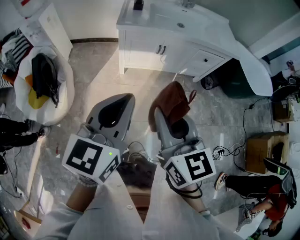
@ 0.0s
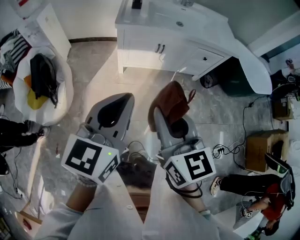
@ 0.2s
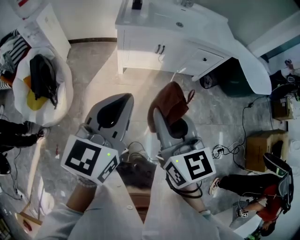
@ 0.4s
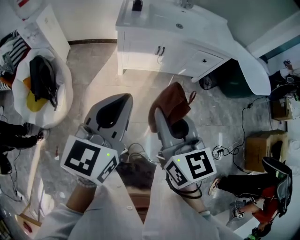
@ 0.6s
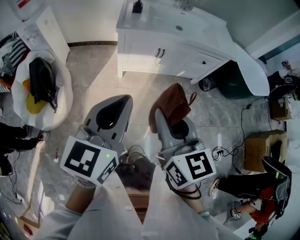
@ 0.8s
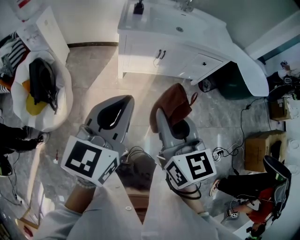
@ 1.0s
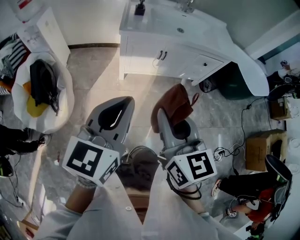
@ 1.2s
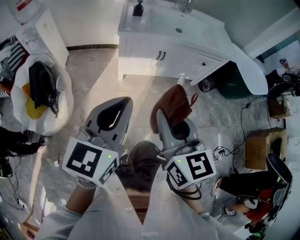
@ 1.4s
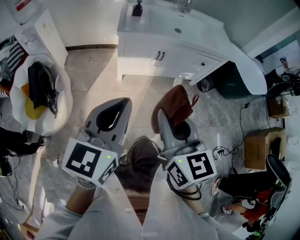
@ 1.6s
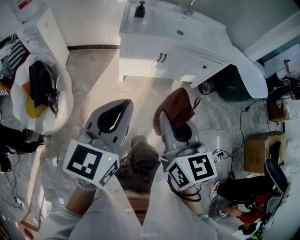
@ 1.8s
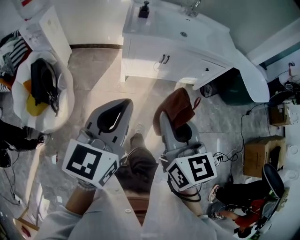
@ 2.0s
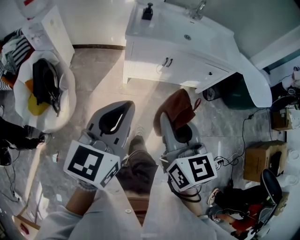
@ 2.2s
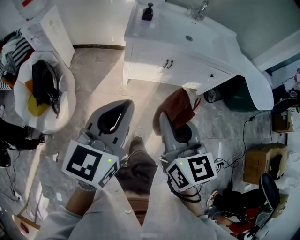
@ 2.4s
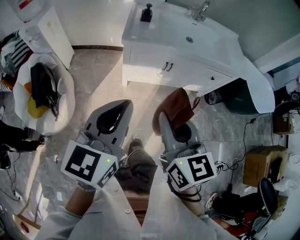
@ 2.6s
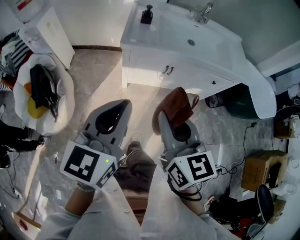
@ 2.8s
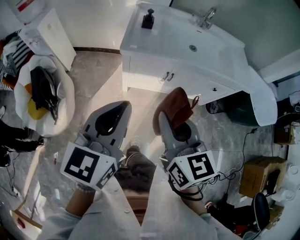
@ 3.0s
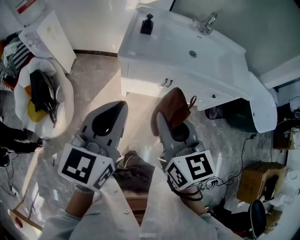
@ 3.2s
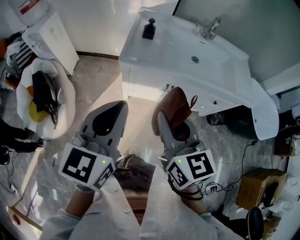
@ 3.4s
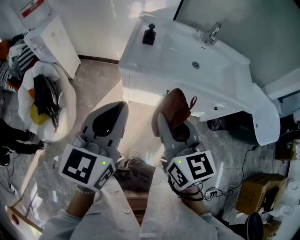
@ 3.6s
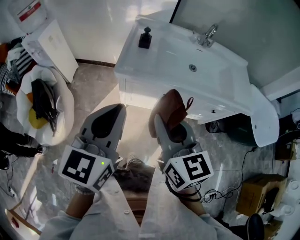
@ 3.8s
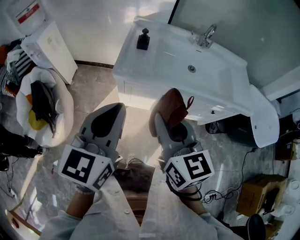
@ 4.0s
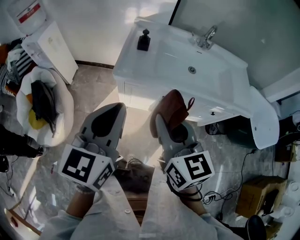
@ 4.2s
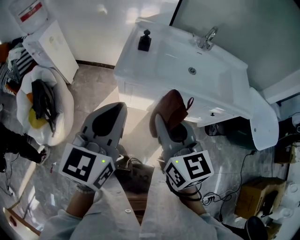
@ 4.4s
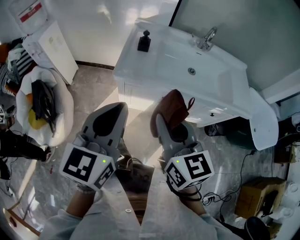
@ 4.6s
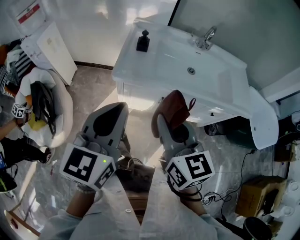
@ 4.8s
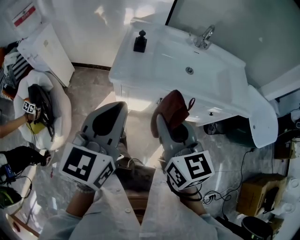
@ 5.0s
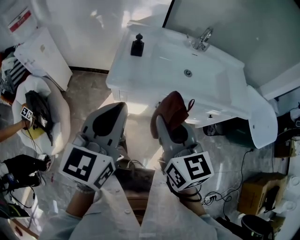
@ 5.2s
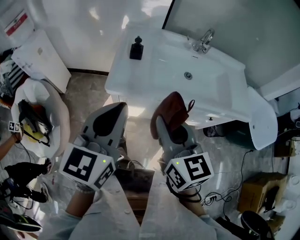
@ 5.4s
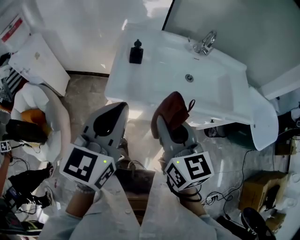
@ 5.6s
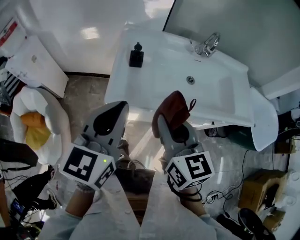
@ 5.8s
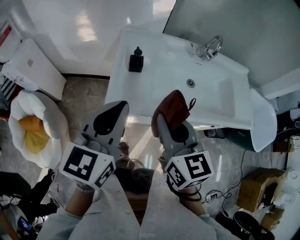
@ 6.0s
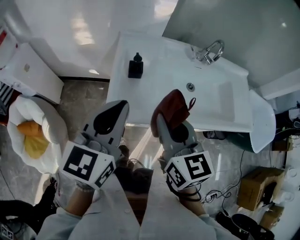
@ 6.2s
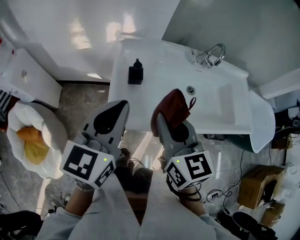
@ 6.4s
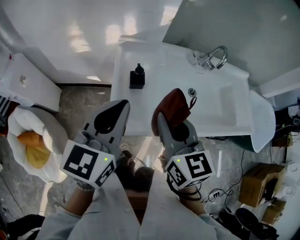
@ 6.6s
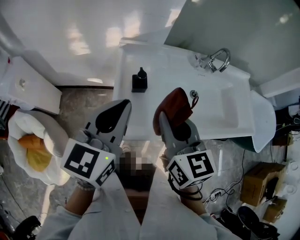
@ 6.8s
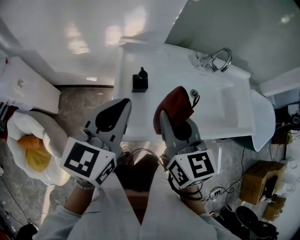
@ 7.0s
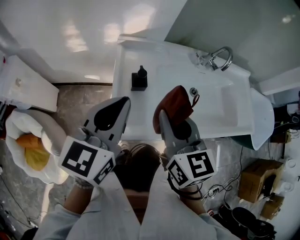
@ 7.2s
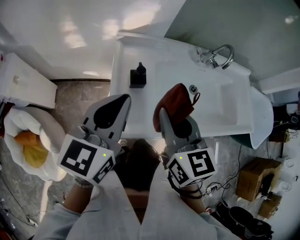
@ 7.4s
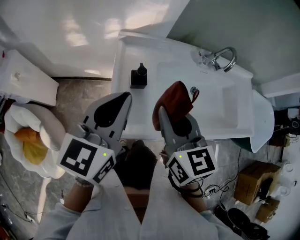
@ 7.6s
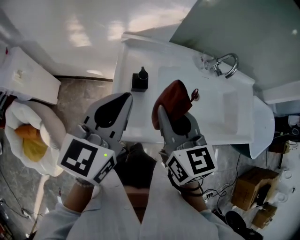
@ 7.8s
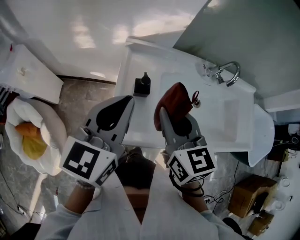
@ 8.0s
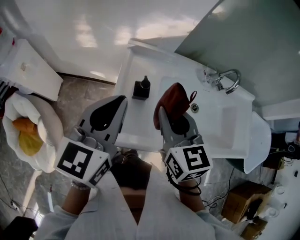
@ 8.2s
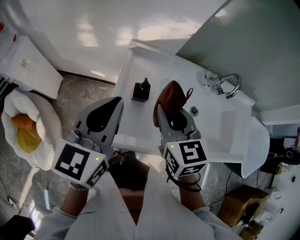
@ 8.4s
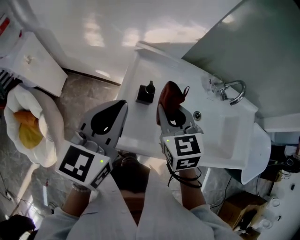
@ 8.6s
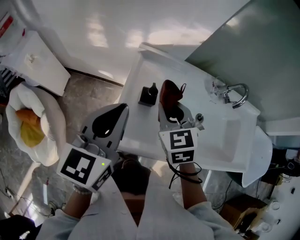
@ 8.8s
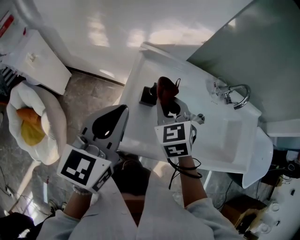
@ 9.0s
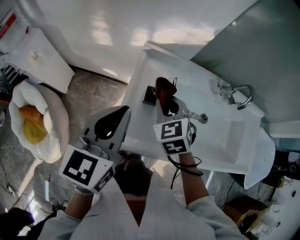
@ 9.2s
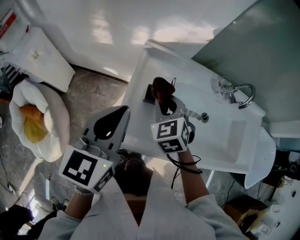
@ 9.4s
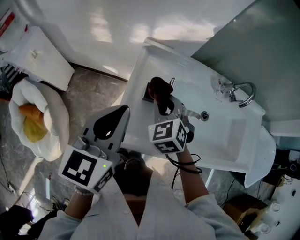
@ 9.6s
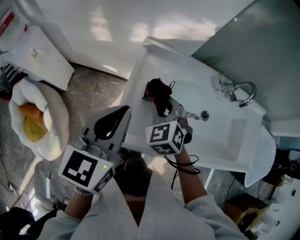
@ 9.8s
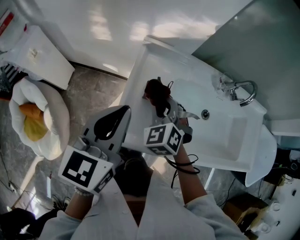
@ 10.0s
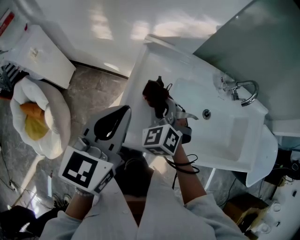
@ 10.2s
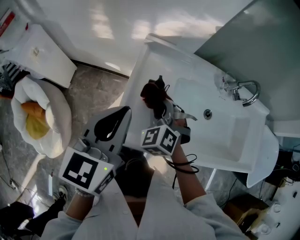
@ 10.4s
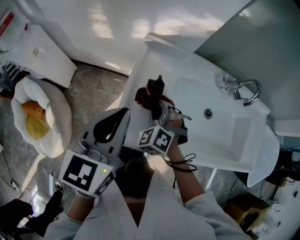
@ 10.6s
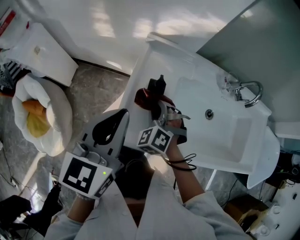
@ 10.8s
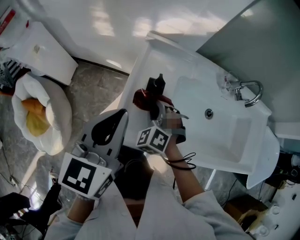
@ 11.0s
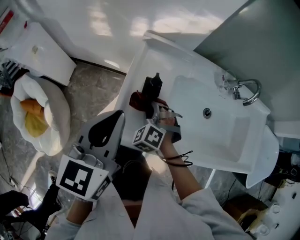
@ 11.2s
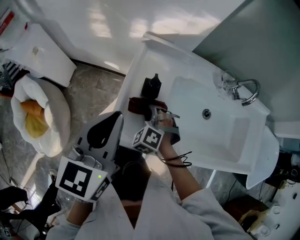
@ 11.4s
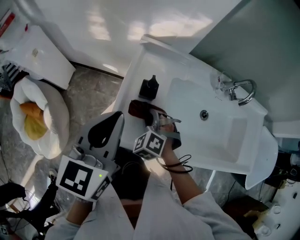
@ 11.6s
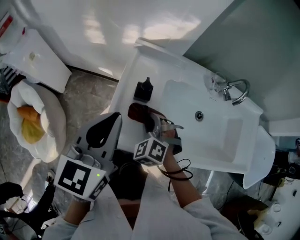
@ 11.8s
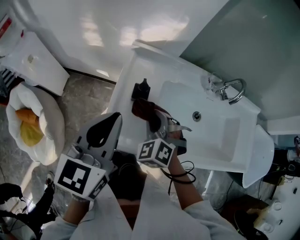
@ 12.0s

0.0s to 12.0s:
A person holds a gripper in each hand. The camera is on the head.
0.0s to 1.6s: The left gripper goes approximately 5 cm to the left. Meanwhile the right gripper ends up about 5 cm from where it was.
1.6s to 3.0s: The two grippers go approximately 20 cm forward.
3.0s to 4.4s: The grippers both shift forward by about 10 cm.
4.4s to 6.0s: Both grippers move forward, some 20 cm.
6.0s to 7.6s: Both grippers move forward, about 15 cm.
7.6s to 9.0s: The right gripper shifts approximately 15 cm forward and downward, and swivels approximately 40 degrees.
9.0s to 10.4s: The right gripper goes about 5 cm downward, and swivels approximately 20 degrees.
10.4s to 12.0s: The right gripper reaches about 10 cm downward, then returns.

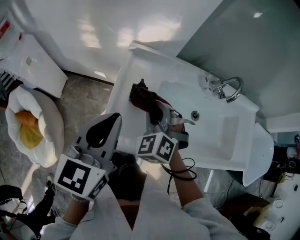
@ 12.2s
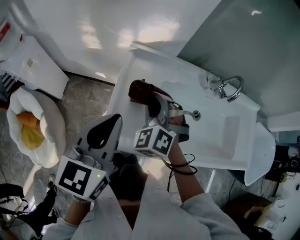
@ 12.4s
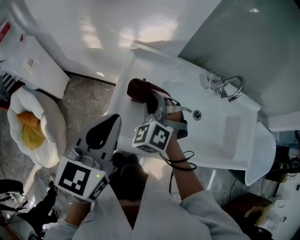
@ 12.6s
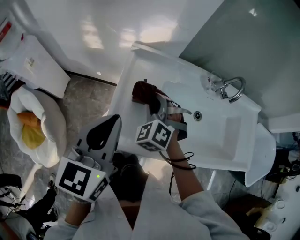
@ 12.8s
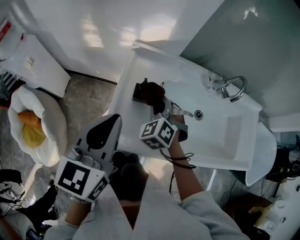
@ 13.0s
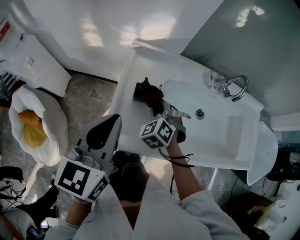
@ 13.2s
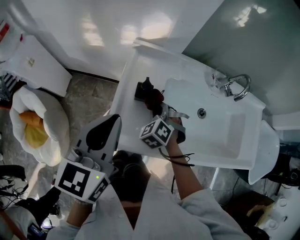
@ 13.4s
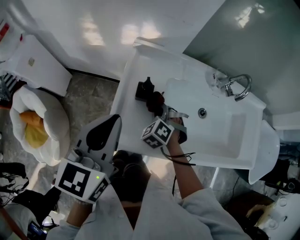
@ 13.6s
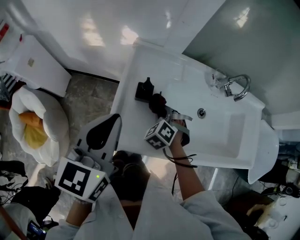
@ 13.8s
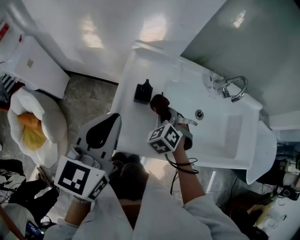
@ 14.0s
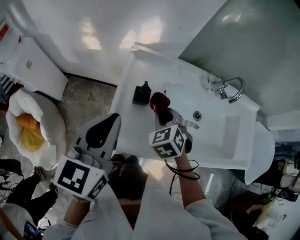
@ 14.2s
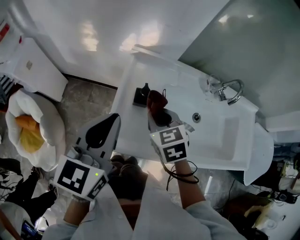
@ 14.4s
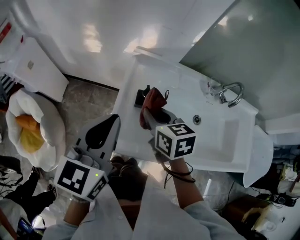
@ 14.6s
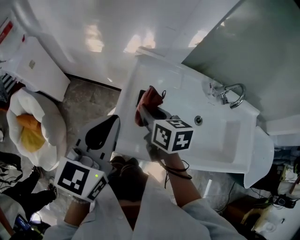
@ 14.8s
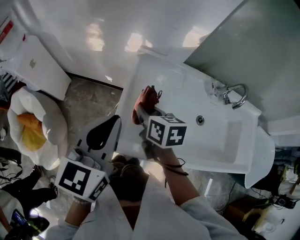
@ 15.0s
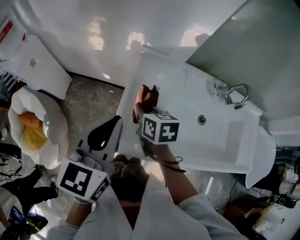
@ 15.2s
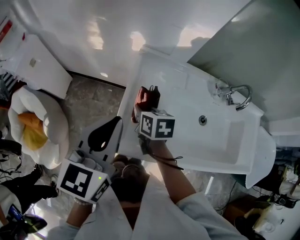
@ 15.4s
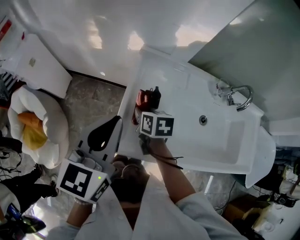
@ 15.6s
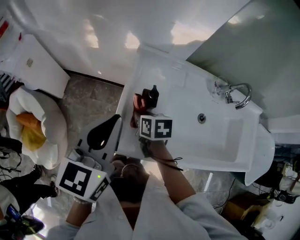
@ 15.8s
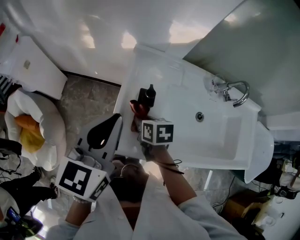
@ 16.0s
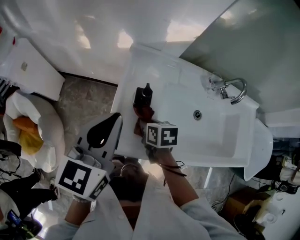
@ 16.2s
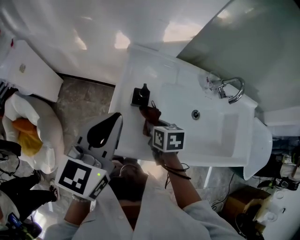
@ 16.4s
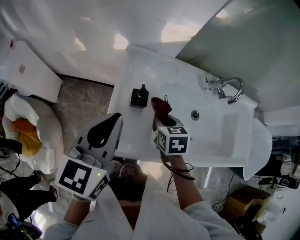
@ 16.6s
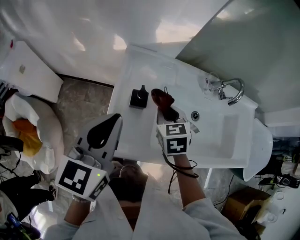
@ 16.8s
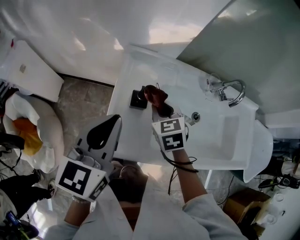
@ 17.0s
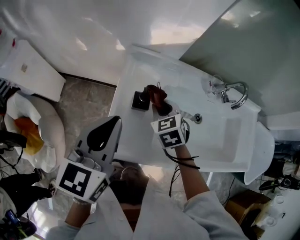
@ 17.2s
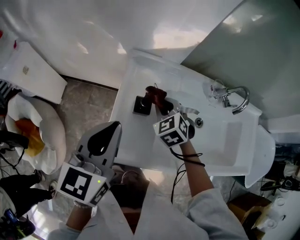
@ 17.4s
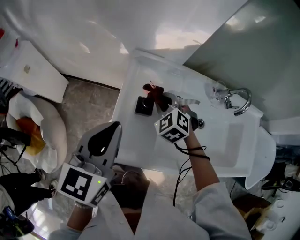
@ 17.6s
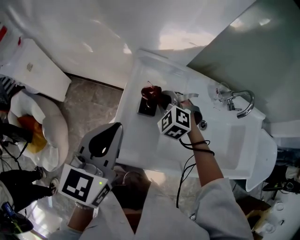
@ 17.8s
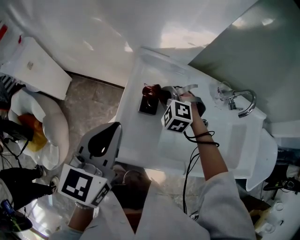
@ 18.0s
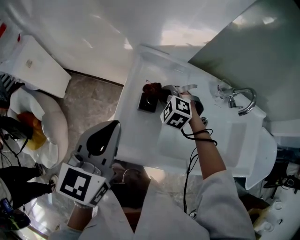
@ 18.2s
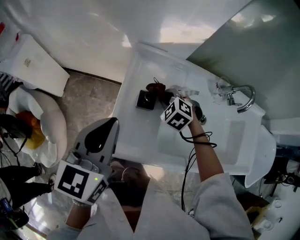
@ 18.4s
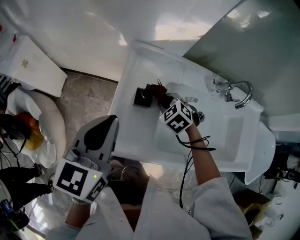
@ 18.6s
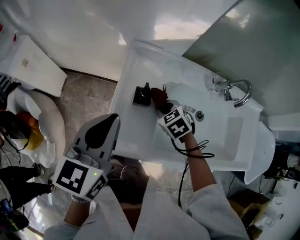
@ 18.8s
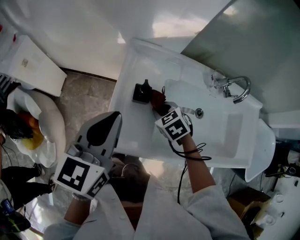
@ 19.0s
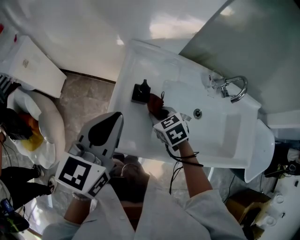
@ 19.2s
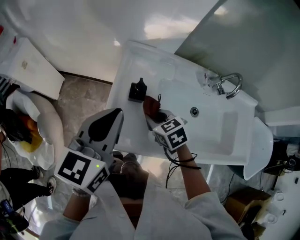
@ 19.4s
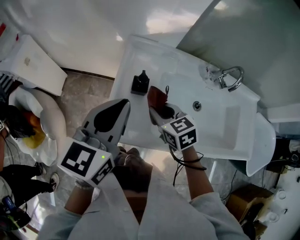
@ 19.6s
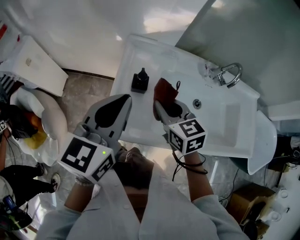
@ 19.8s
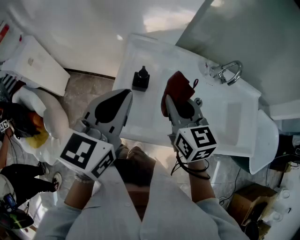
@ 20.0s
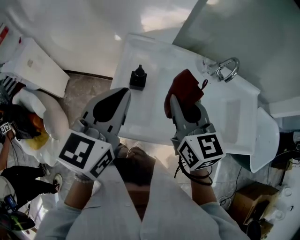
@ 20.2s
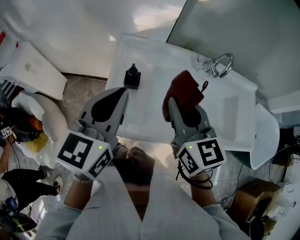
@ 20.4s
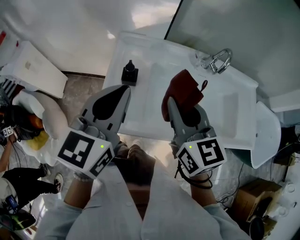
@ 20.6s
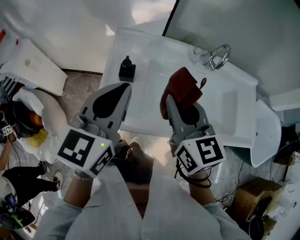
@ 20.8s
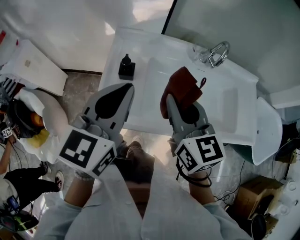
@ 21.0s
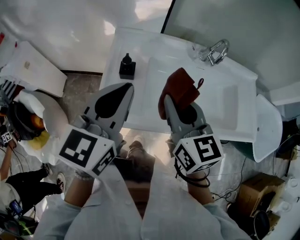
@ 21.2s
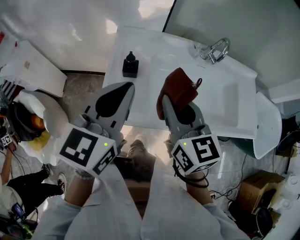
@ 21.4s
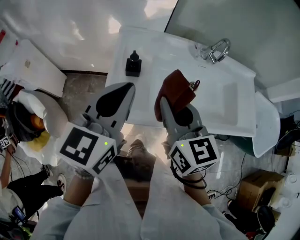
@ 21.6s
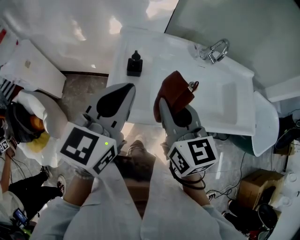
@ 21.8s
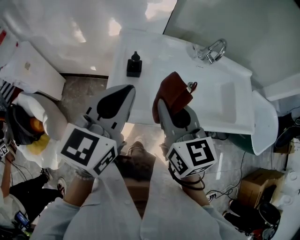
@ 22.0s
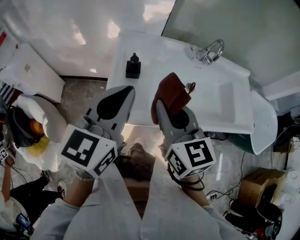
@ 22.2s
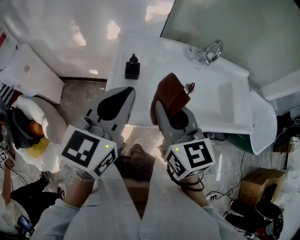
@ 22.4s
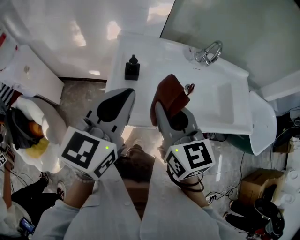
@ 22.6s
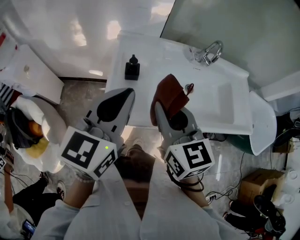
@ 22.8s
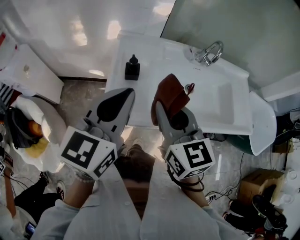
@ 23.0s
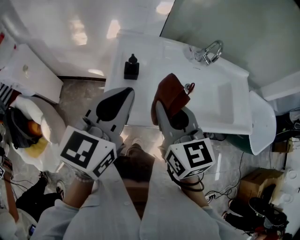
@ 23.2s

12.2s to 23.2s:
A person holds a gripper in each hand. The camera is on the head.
12.2s to 13.8s: The right gripper goes approximately 15 cm downward, and changes its angle by roughly 20 degrees.
13.8s to 15.4s: The right gripper goes approximately 15 cm to the left and upward, and rolls clockwise, seen from behind, by about 60 degrees.
15.4s to 17.0s: The right gripper travels to the right by roughly 10 cm, and changes its angle by about 30 degrees.
17.0s to 18.4s: The right gripper is displaced downward by roughly 10 cm, and rolls counterclockwise, seen from behind, by some 40 degrees.
18.4s to 20.0s: The right gripper moves upward and backward, approximately 25 cm, and tilts its fingers some 40 degrees upward, while the left gripper shifts by some 10 cm.
20.0s to 21.6s: The right gripper goes roughly 10 cm backward. Meanwhile the left gripper travels backward by roughly 5 cm.
21.6s to 23.2s: The grippers move only a little.

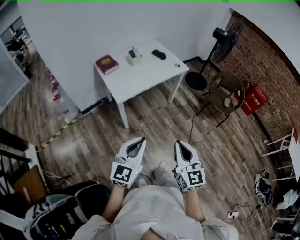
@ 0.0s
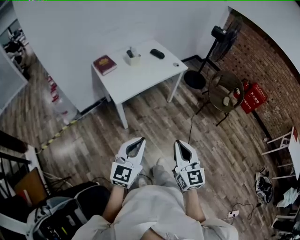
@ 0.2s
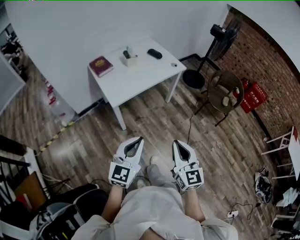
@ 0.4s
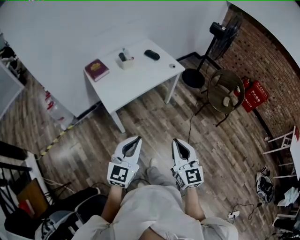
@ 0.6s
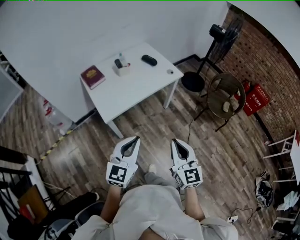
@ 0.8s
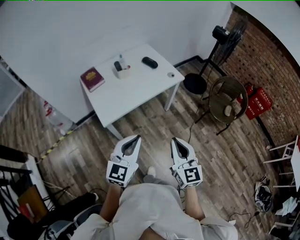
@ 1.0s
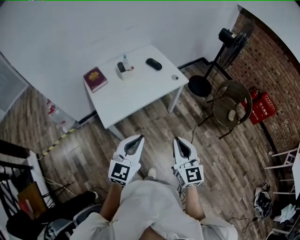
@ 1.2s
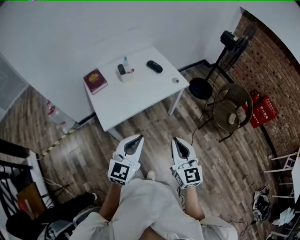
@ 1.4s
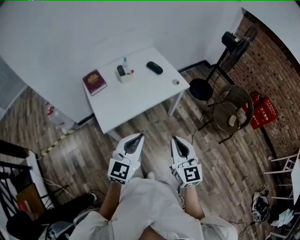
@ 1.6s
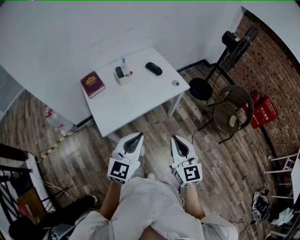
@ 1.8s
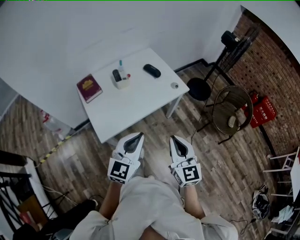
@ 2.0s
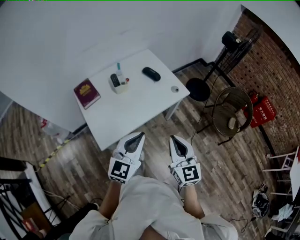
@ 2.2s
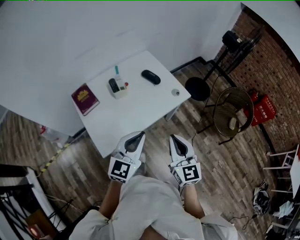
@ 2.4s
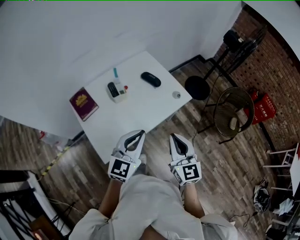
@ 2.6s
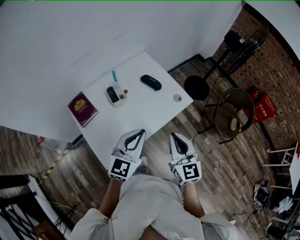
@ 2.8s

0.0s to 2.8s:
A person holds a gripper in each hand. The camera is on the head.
0.0s to 1.4s: Both grippers move forward, some 25 cm.
1.4s to 2.8s: Both grippers travel together forward, some 25 cm.
